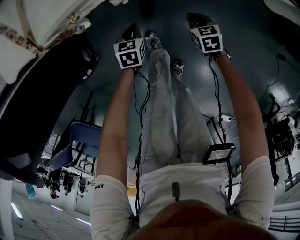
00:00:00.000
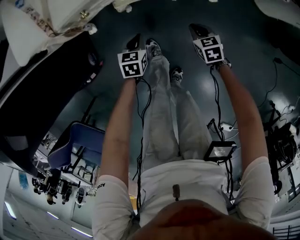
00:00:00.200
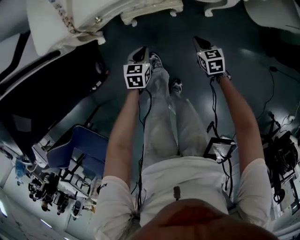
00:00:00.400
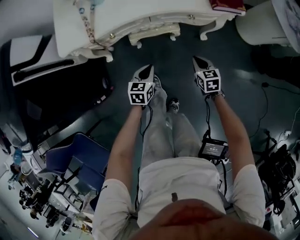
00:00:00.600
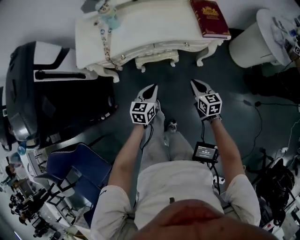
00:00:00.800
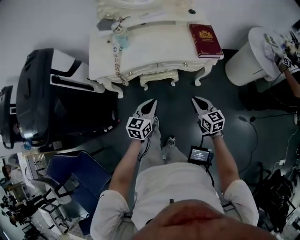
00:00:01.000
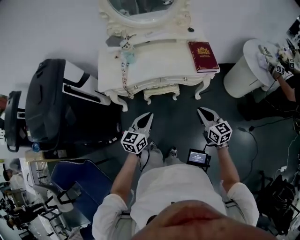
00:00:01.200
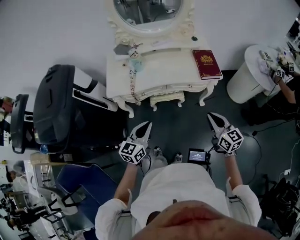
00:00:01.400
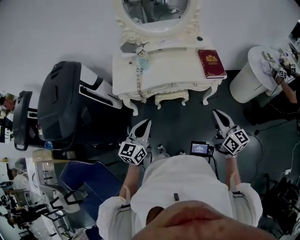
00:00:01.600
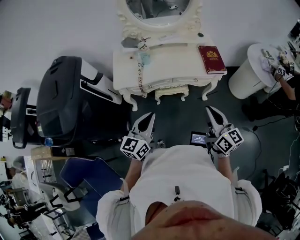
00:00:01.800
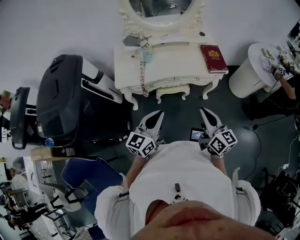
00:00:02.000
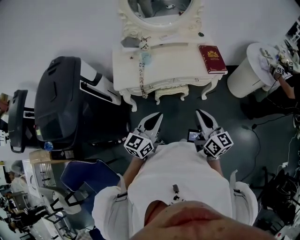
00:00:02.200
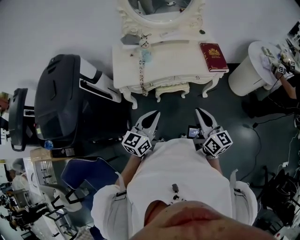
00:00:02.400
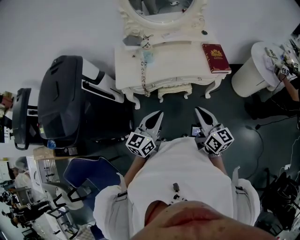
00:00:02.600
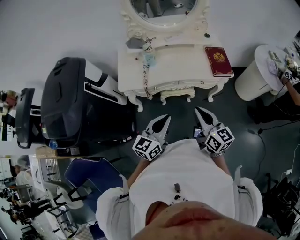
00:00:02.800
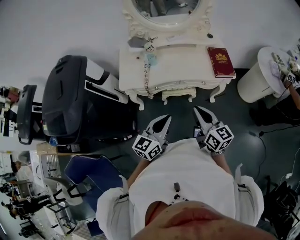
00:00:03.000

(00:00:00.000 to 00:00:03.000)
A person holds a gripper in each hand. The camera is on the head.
00:00:00.000 - 00:00:01.600: The grippers both shift upward by some 70 cm. The right gripper tilts its fingers about 50 degrees upward; the left gripper angles its fingers upward, by some 50 degrees.
00:00:01.600 - 00:00:03.000: The left gripper moves to the right, some 5 cm. The right gripper moves to the left, about 10 cm.

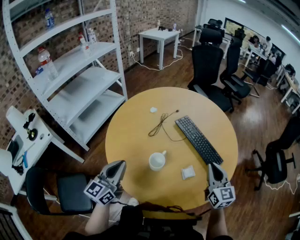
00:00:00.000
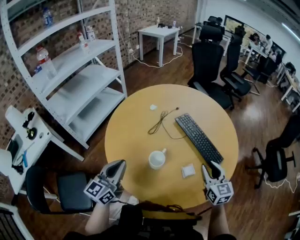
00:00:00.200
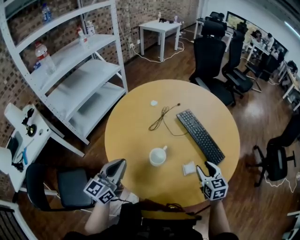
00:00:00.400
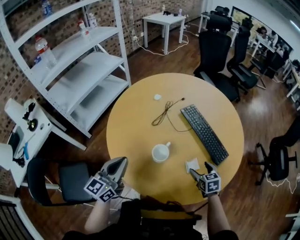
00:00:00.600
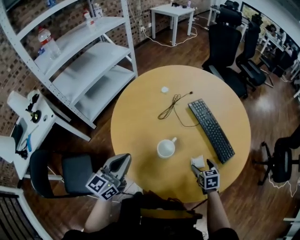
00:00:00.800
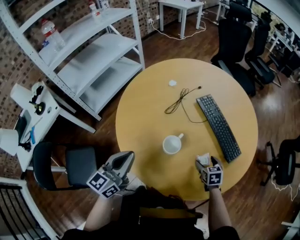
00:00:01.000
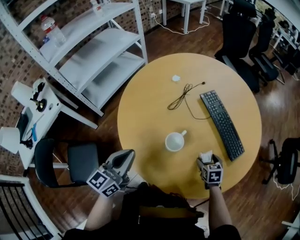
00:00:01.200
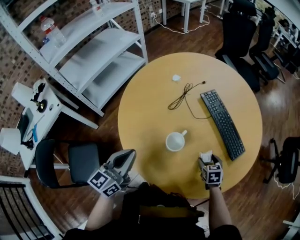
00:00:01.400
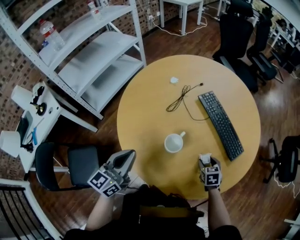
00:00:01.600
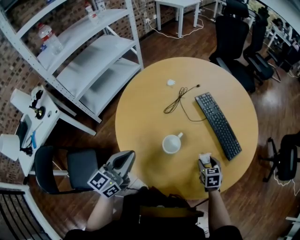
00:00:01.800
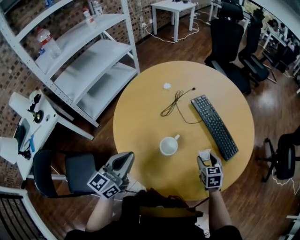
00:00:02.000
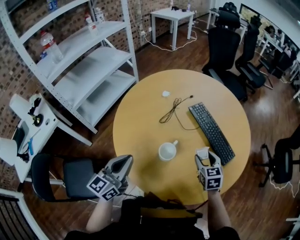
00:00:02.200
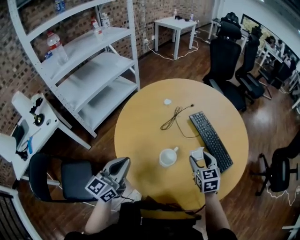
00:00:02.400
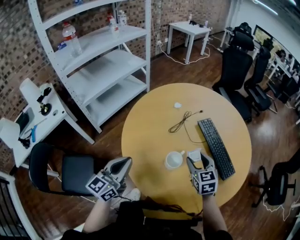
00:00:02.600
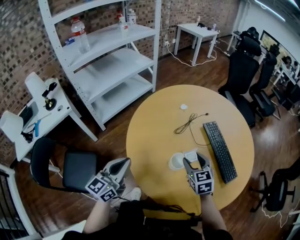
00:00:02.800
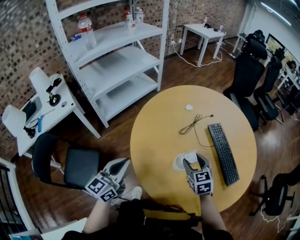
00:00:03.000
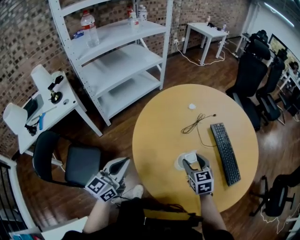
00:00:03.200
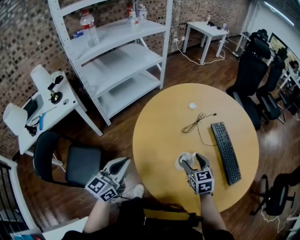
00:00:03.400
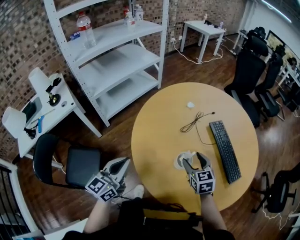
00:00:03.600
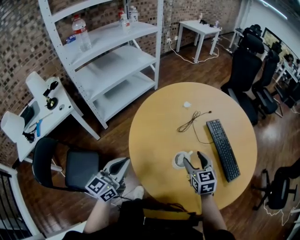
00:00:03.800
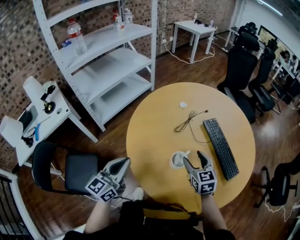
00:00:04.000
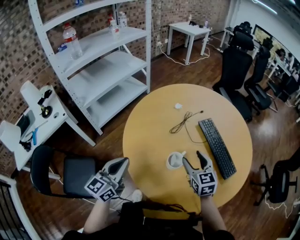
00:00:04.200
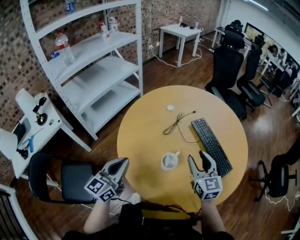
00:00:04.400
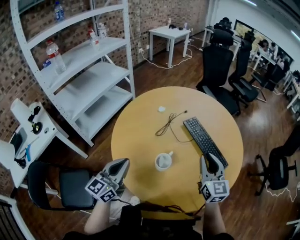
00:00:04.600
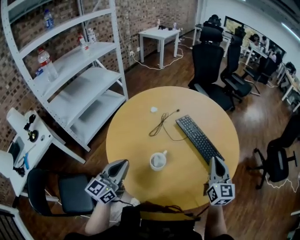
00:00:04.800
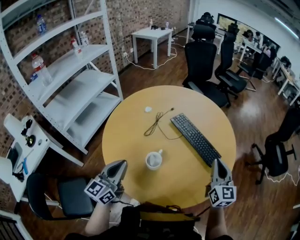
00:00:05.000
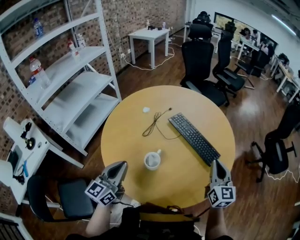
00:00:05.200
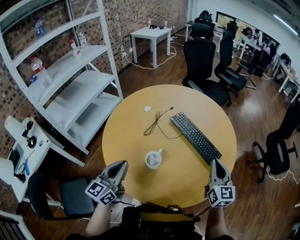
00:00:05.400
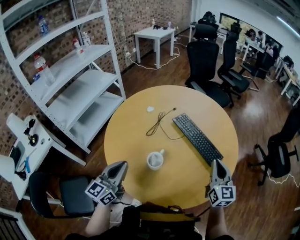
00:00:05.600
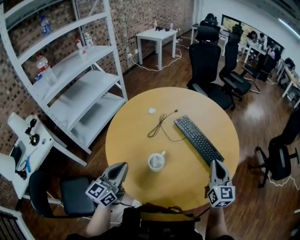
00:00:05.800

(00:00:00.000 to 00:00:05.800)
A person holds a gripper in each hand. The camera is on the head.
00:00:00.000 - 00:00:01.400: The right gripper moves downward, approximately 25 cm, points its fingers about 50 degrees further downward, and opens.
00:00:01.400 - 00:00:02.800: The right gripper shifts roughly 25 cm upward and to the left, and turns by some 30 degrees. Meanwhile the left gripper goes some 5 cm to the left.
00:00:02.800 - 00:00:04.400: The right gripper shifts roughly 5 cm upward, and changes its angle by about 20 degrees.
00:00:04.400 - 00:00:05.800: The left gripper goes some 5 cm to the right, while the right gripper moves to the right, roughly 20 cm, swivels about 20 degrees, and closes its fingers.

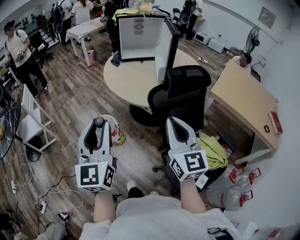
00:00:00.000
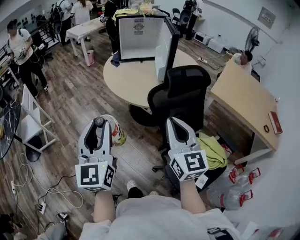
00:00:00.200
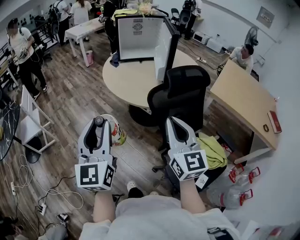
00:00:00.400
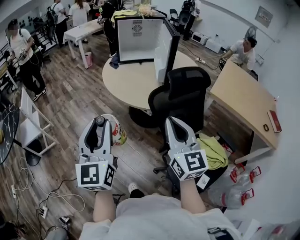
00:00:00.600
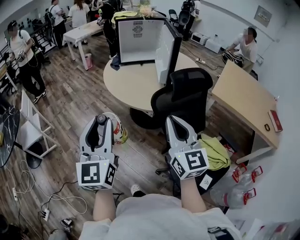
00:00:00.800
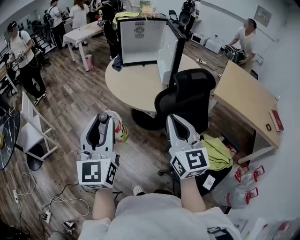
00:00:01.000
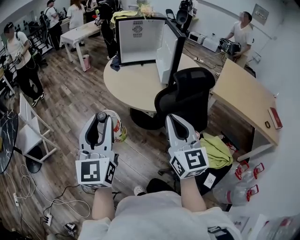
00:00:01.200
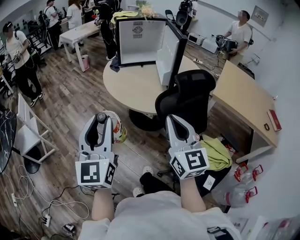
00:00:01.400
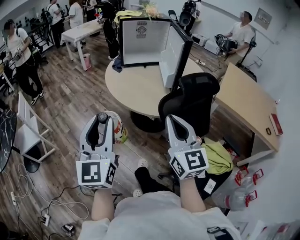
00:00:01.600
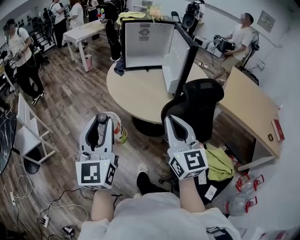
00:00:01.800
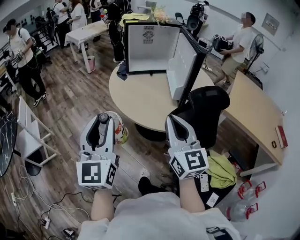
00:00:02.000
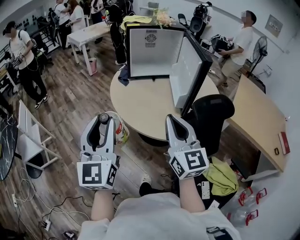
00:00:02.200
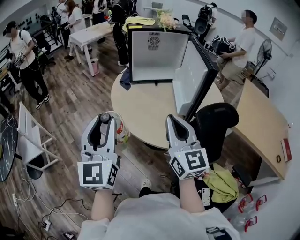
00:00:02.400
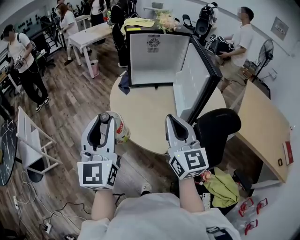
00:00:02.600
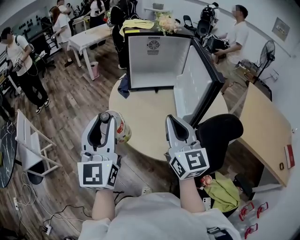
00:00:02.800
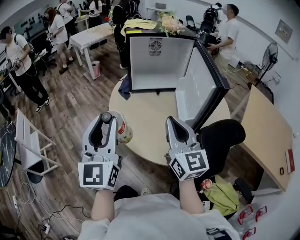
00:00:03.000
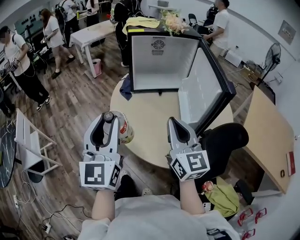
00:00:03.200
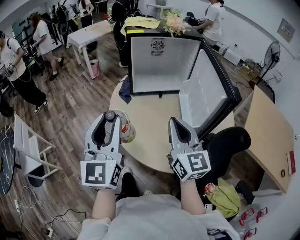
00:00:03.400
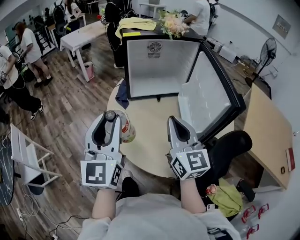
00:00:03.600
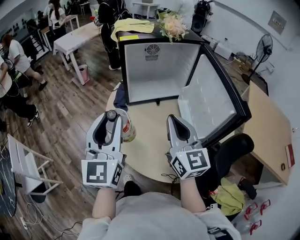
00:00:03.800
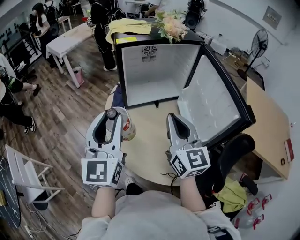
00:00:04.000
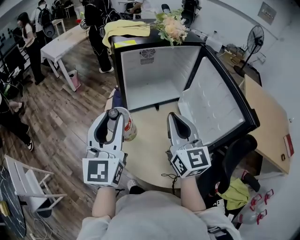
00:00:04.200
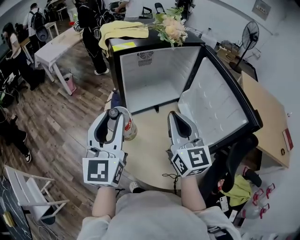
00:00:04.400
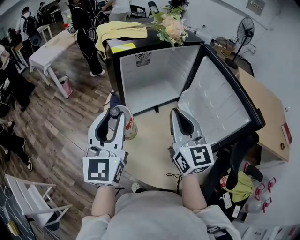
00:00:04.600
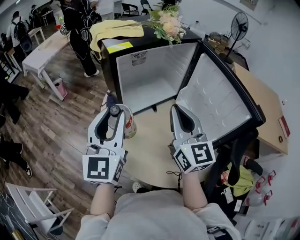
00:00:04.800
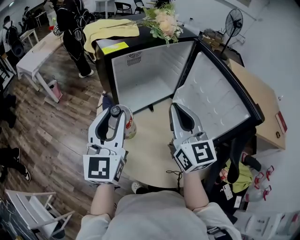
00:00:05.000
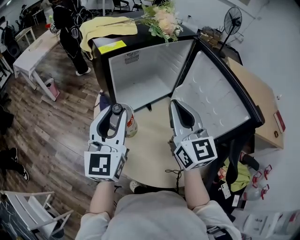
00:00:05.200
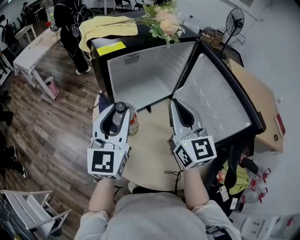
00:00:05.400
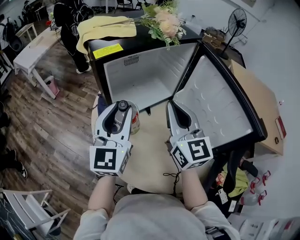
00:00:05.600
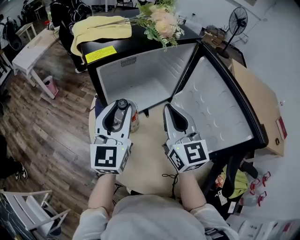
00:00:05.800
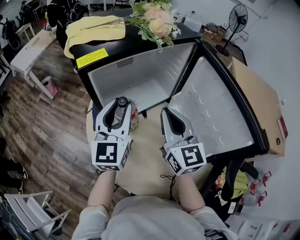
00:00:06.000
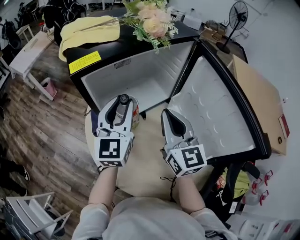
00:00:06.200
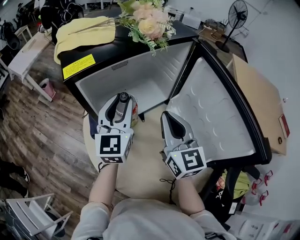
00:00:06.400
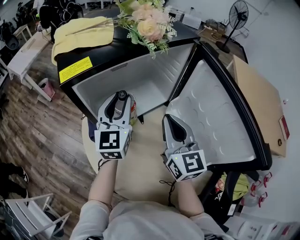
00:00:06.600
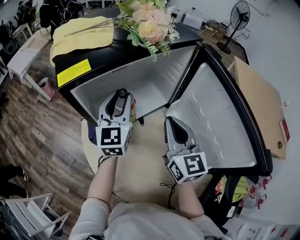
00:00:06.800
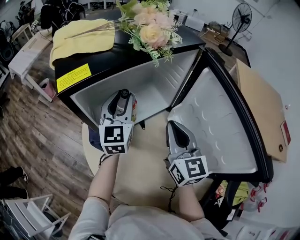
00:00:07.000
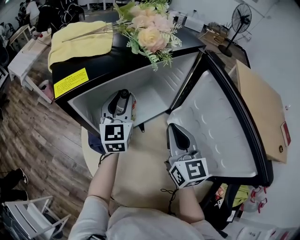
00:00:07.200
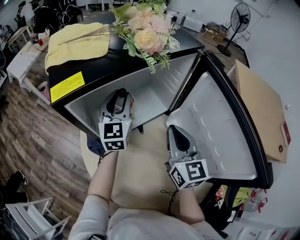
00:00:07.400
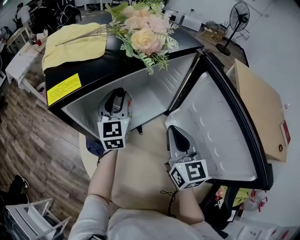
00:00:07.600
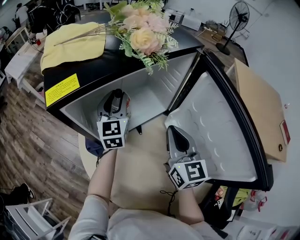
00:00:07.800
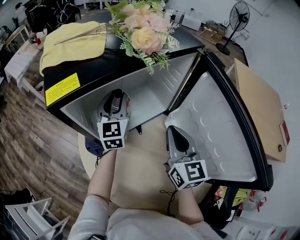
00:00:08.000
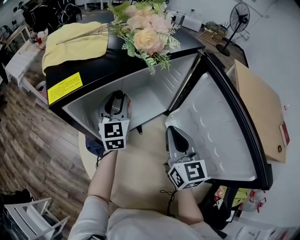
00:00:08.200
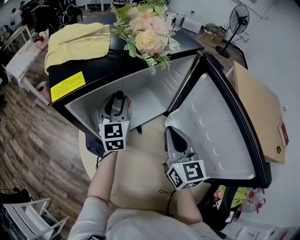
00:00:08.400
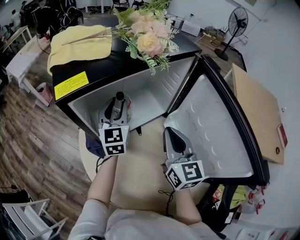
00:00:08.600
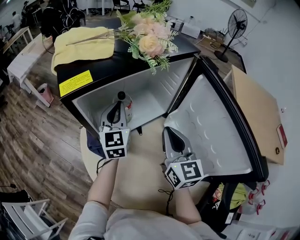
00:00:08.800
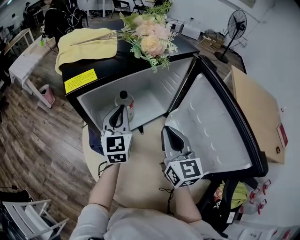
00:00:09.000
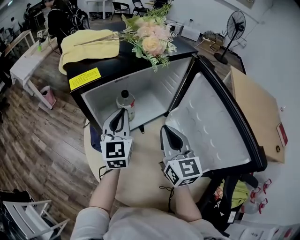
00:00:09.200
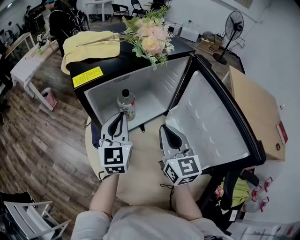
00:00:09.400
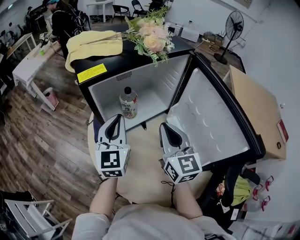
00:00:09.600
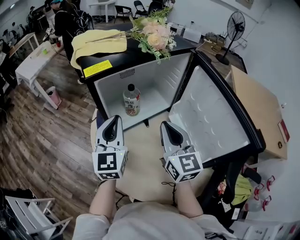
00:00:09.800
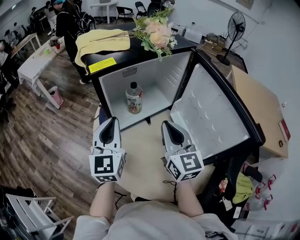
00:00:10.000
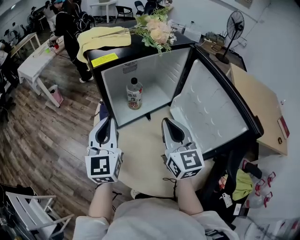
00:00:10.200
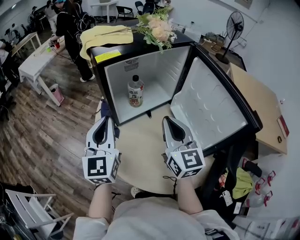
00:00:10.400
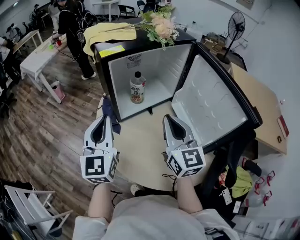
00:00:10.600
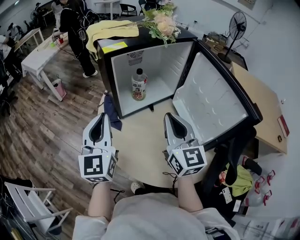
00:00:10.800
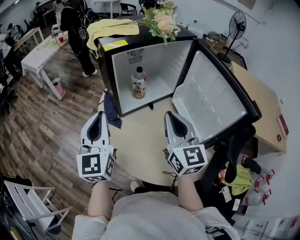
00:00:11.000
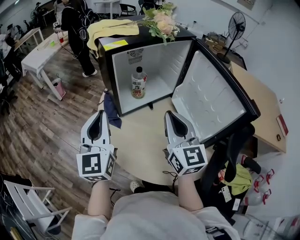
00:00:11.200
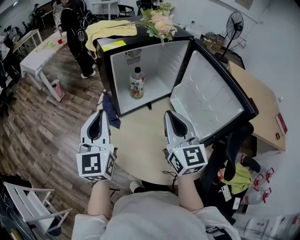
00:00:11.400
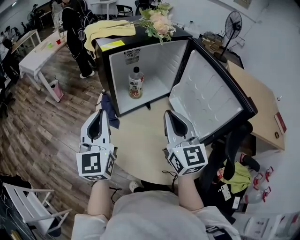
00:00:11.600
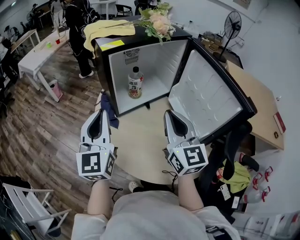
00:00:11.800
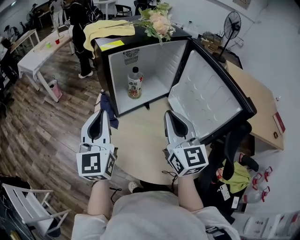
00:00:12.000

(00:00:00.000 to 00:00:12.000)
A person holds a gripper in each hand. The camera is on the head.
00:00:00.000 - 00:00:01.600: The two grippers go about 10 cm forward and to the left.
00:00:01.600 - 00:00:03.000: Both grippers move forward, roughly 30 cm.
00:00:03.000 - 00:00:04.400: The two grippers go approximately 25 cm forward.
00:00:04.400 - 00:00:06.000: The right gripper travels forward by some 10 cm. Meanwhile the left gripper shifts approximately 20 cm forward.
00:00:06.000 - 00:00:07.600: The left gripper is displaced forward and downward by some 20 cm. Meanwhile the right gripper shifts about 10 cm downward, to the right and forward.
00:00:07.600 - 00:00:09.000: The left gripper is displaced backward by about 5 cm, and closes.
00:00:09.000 - 00:00:10.400: The left gripper goes roughly 25 cm backward, to the left and upward, while the right gripper goes approximately 10 cm backward and to the left.
00:00:10.400 - 00:00:12.000: The left gripper ends up about 5 cm from where it was. The right gripper travels backward by roughly 5 cm.

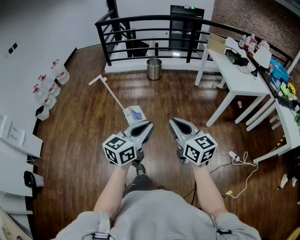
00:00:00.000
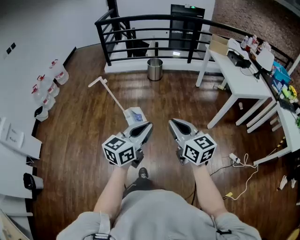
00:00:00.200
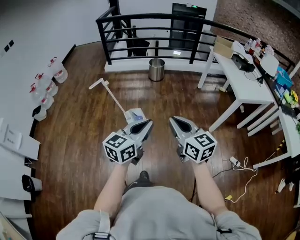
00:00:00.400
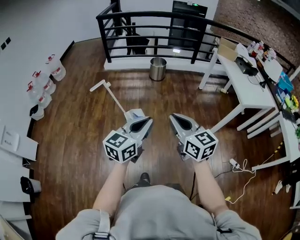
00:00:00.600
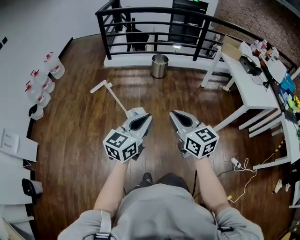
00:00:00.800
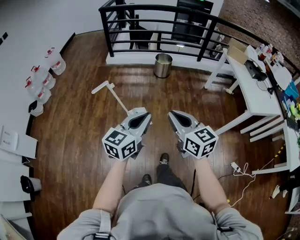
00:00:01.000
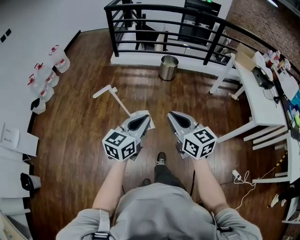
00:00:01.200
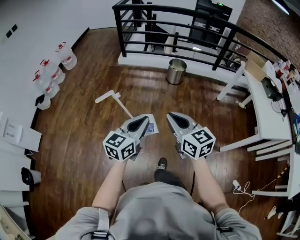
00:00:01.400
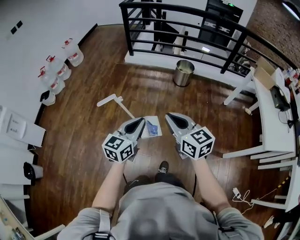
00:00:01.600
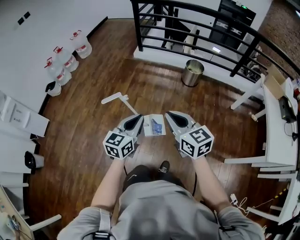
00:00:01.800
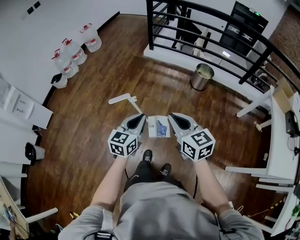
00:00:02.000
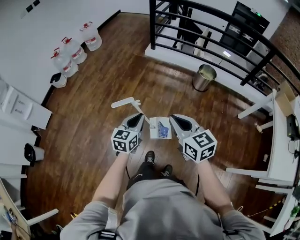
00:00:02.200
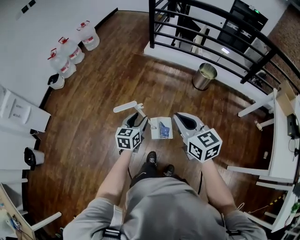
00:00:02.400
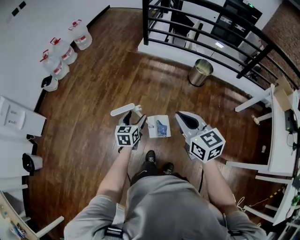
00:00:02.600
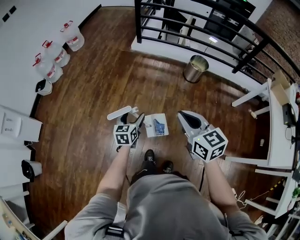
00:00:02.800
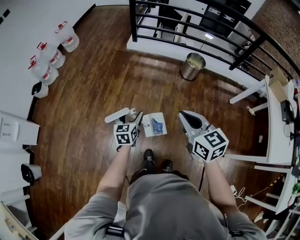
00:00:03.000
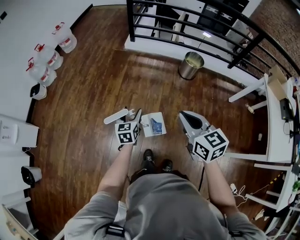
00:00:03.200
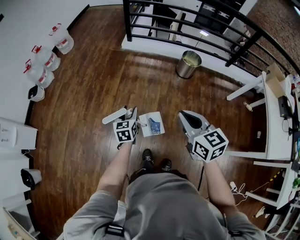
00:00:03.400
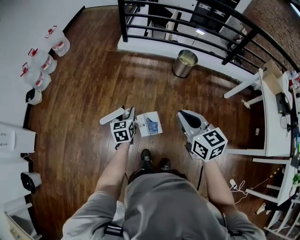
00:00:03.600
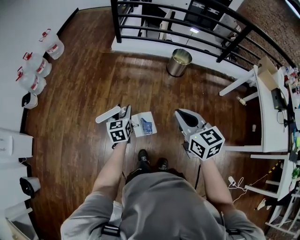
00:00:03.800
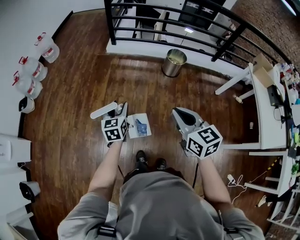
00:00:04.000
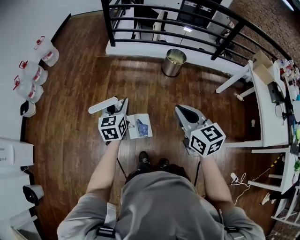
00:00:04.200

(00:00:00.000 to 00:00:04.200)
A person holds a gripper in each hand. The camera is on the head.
00:00:00.000 - 00:00:01.400: Both grippers are carried forward and to the left, roughly 40 cm.
00:00:01.400 - 00:00:02.800: The right gripper travels forward by about 20 cm; the left gripper shifts some 40 cm forward, downward and to the left, swivels approximately 30 degrees, and opens its fingers.
00:00:02.800 - 00:00:04.200: The right gripper travels to the right by some 5 cm. The left gripper heads upward and forward, covering roughly 10 cm, and closes up.
